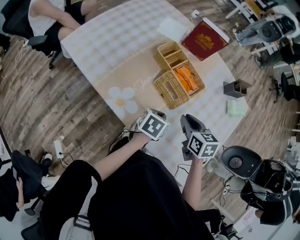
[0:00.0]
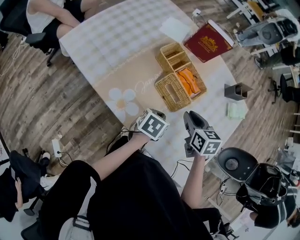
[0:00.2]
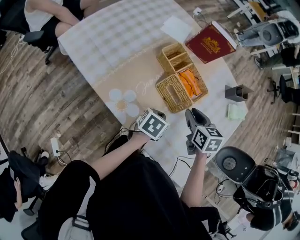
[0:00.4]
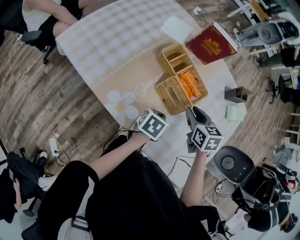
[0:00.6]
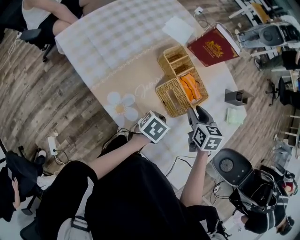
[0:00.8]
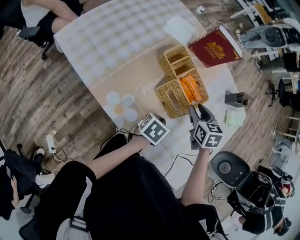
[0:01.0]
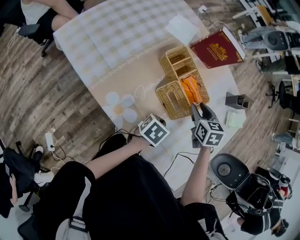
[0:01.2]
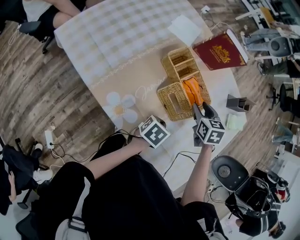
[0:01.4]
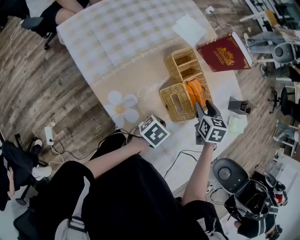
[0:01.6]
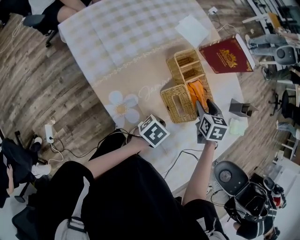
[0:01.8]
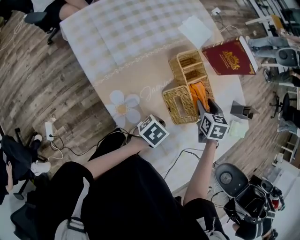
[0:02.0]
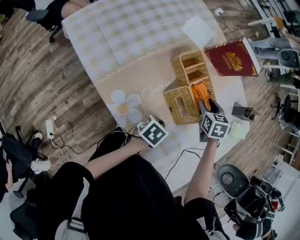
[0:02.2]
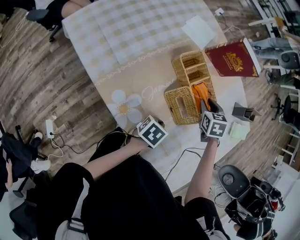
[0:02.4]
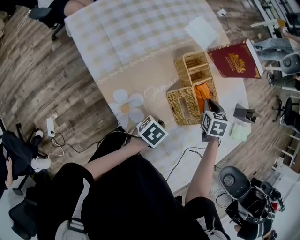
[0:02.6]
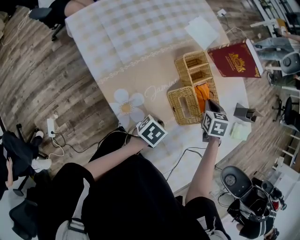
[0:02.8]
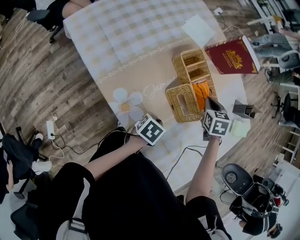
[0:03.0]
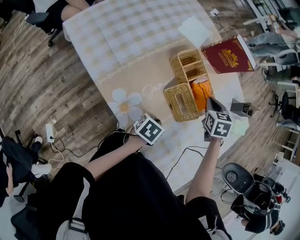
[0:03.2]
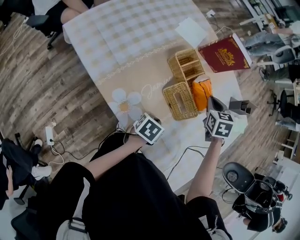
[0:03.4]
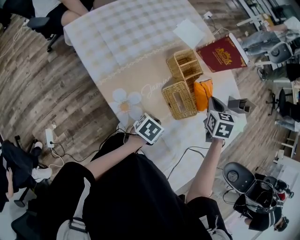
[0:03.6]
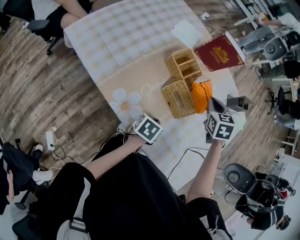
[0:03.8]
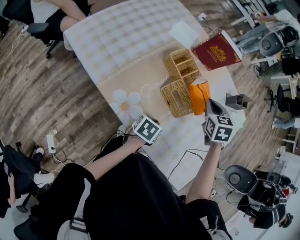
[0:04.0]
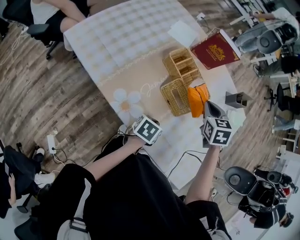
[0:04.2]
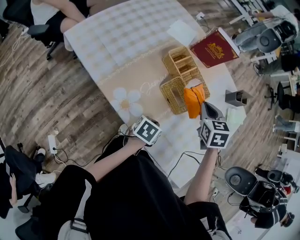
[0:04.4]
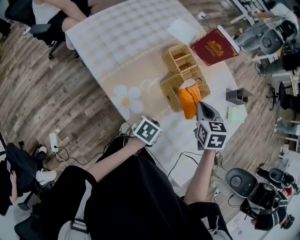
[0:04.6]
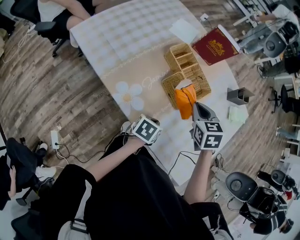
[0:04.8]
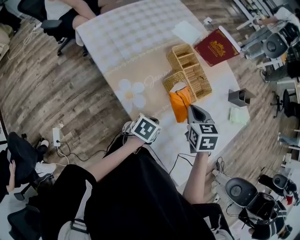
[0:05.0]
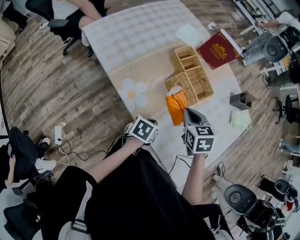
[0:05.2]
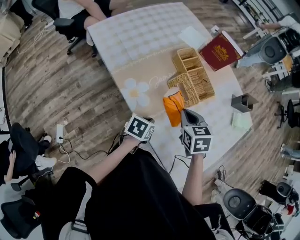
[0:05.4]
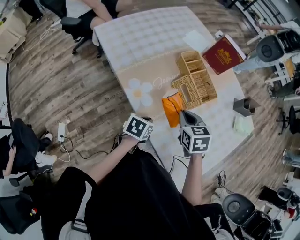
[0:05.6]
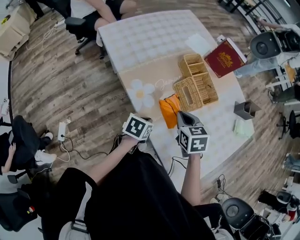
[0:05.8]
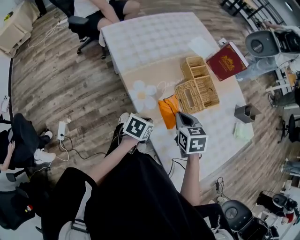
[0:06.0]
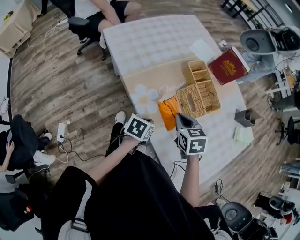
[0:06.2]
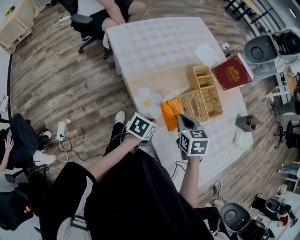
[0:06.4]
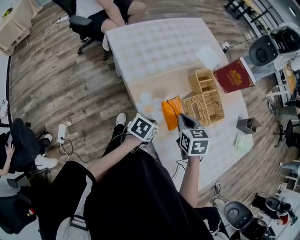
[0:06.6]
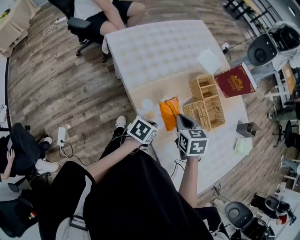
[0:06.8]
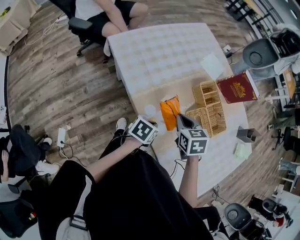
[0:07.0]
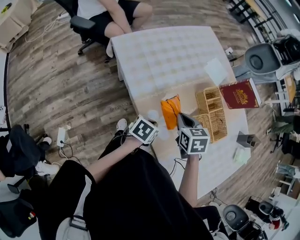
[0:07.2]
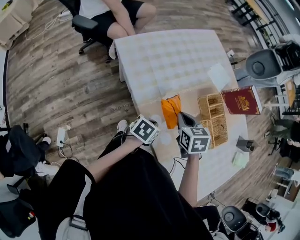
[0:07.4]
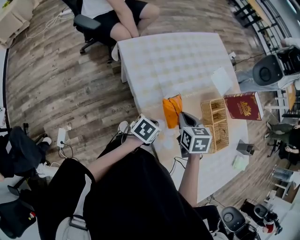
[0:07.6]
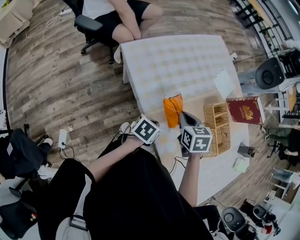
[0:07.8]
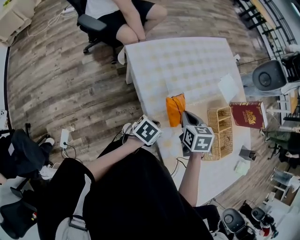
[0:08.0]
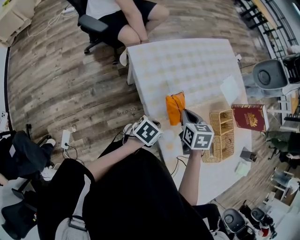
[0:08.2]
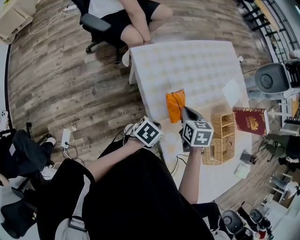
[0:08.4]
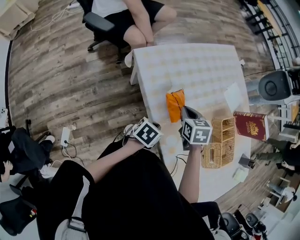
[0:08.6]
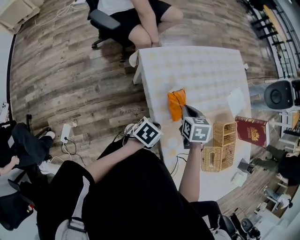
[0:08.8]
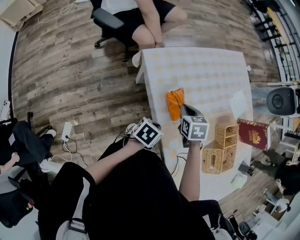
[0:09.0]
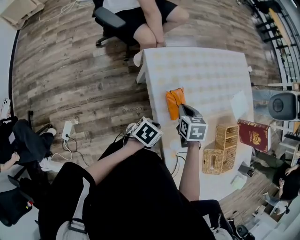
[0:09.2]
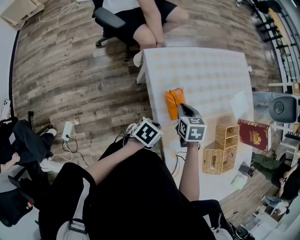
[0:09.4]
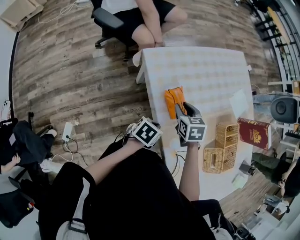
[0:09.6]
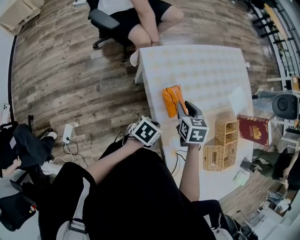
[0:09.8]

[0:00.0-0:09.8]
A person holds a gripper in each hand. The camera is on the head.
0:00.0 to 0:01.4: The right gripper travels forward by roughly 15 cm, and opens up; the left gripper moves some 5 cm.
0:01.4 to 0:02.8: The right gripper changes place by about 5 cm, and closes up.
0:02.8 to 0:04.2: The right gripper shifts roughly 15 cm upward and backward.
0:04.2 to 0:05.6: The right gripper shifts by about 15 cm, and rotates about 20 degrees. Meanwhile the left gripper ends up roughly 10 cm from where it was.
0:05.6 to 0:07.0: Both grippers travel together to the left and forward, roughly 15 cm.
0:07.0 to 0:08.4: The grippers both shift to the left and forward by roughly 20 cm.
0:08.4 to 0:09.8: The right gripper goes some 5 cm to the left, and opens up.

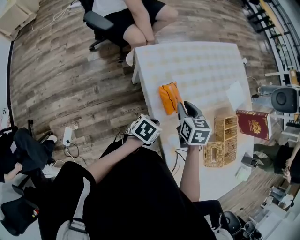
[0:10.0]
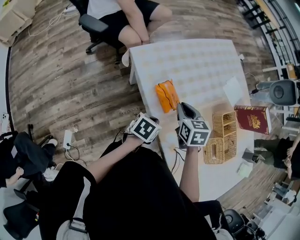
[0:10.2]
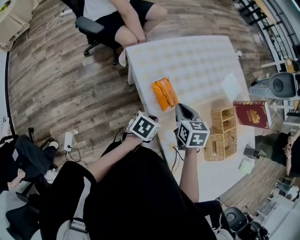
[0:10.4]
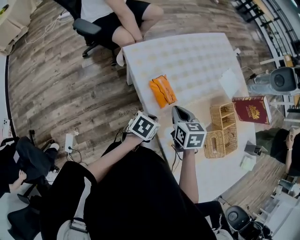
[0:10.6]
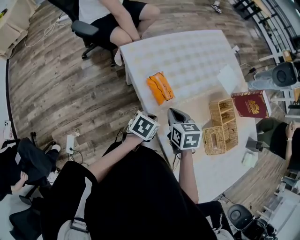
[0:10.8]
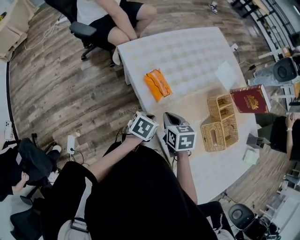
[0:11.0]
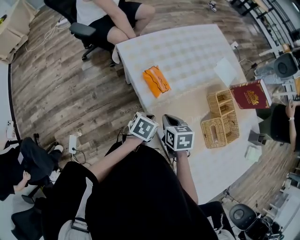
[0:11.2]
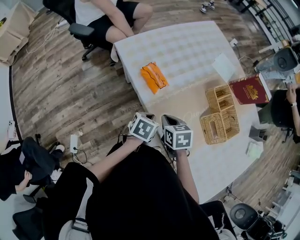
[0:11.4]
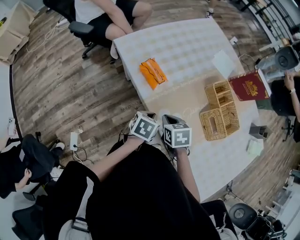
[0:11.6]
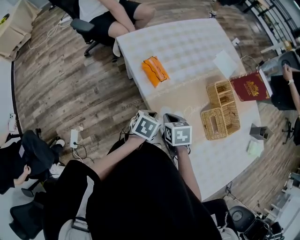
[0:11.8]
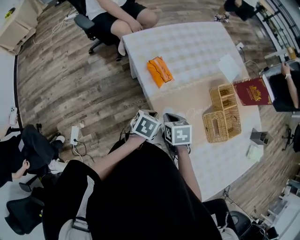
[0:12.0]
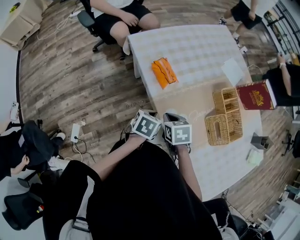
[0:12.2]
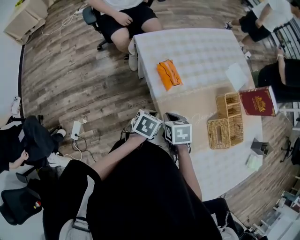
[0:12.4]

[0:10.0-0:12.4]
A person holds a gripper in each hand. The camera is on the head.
0:10.0 to 0:11.2: The right gripper is displaced backward and to the right by roughly 15 cm, and closes up. Meanwhile the left gripper goes about 5 cm to the right.
0:11.2 to 0:12.4: The grippers make only small movements.

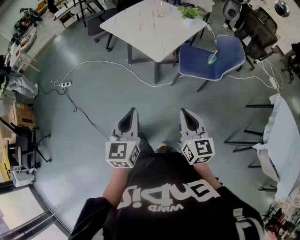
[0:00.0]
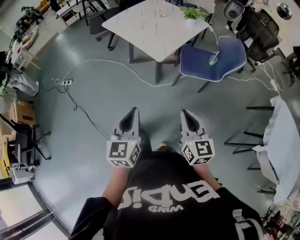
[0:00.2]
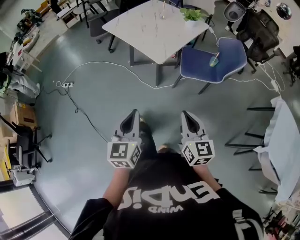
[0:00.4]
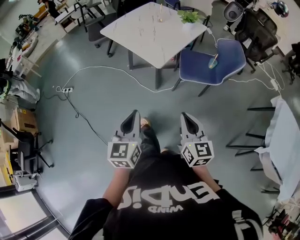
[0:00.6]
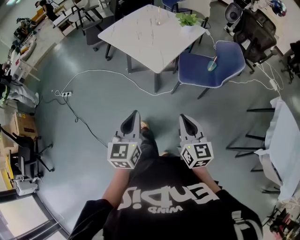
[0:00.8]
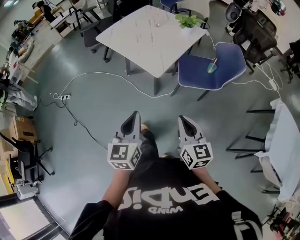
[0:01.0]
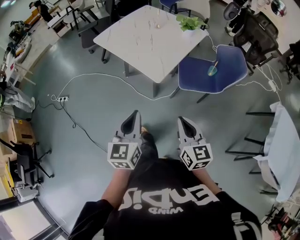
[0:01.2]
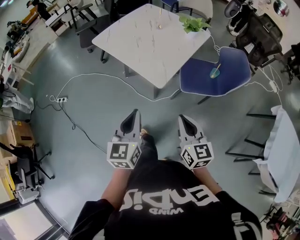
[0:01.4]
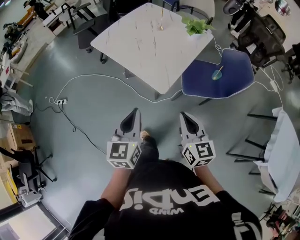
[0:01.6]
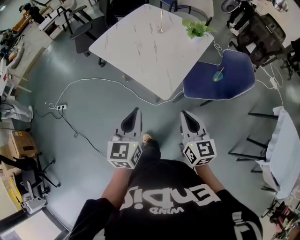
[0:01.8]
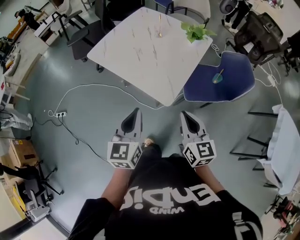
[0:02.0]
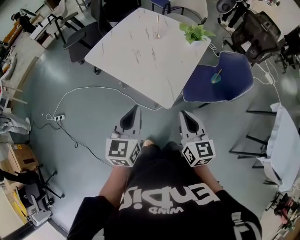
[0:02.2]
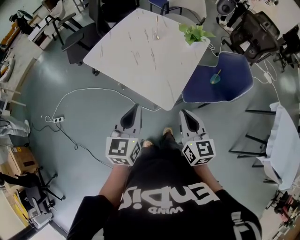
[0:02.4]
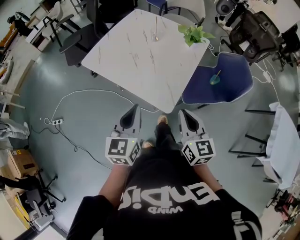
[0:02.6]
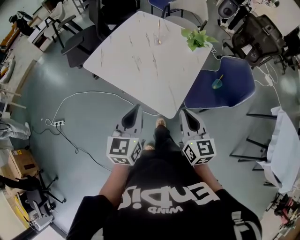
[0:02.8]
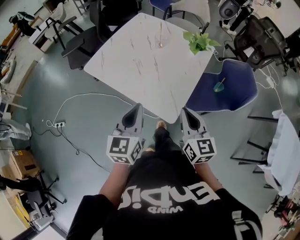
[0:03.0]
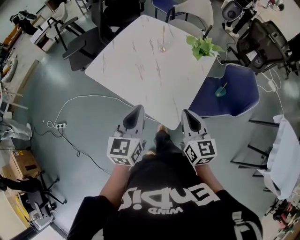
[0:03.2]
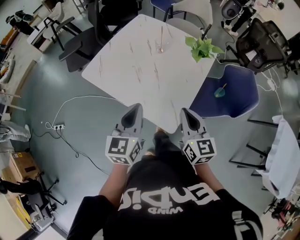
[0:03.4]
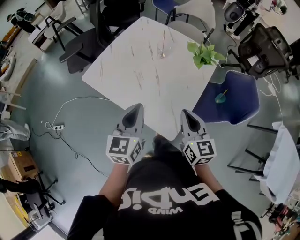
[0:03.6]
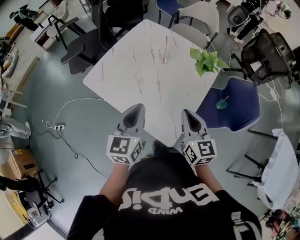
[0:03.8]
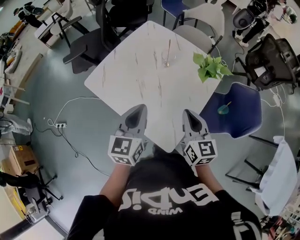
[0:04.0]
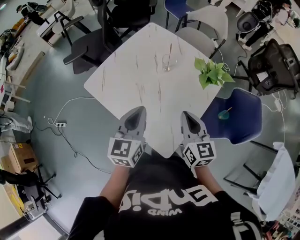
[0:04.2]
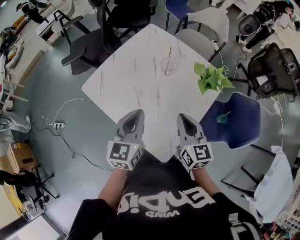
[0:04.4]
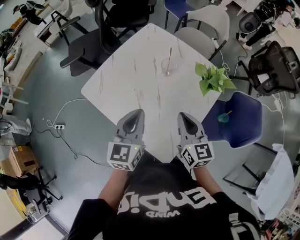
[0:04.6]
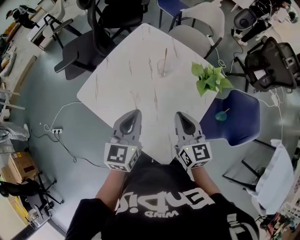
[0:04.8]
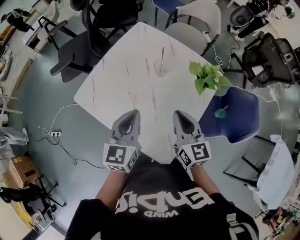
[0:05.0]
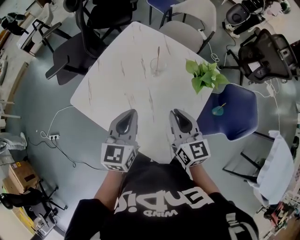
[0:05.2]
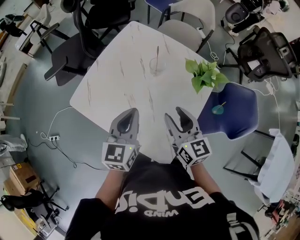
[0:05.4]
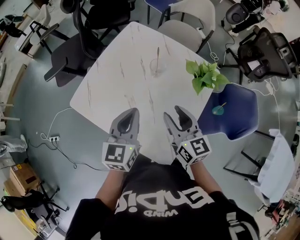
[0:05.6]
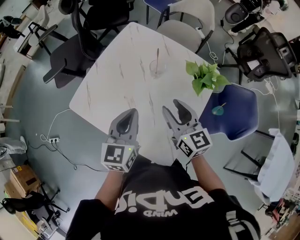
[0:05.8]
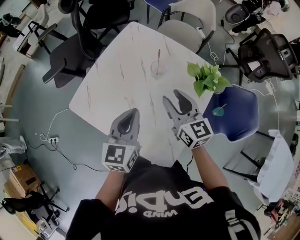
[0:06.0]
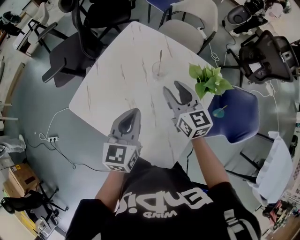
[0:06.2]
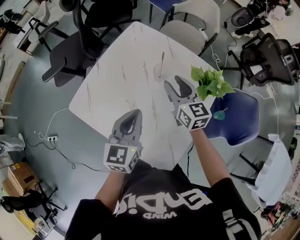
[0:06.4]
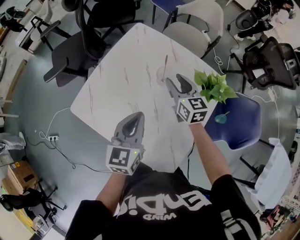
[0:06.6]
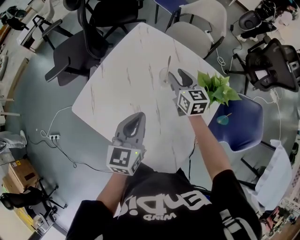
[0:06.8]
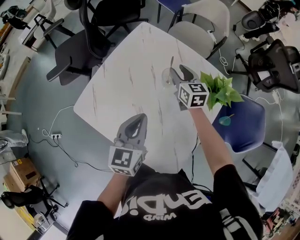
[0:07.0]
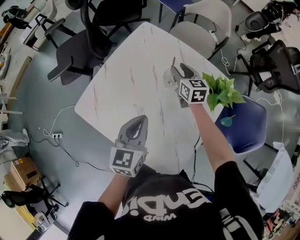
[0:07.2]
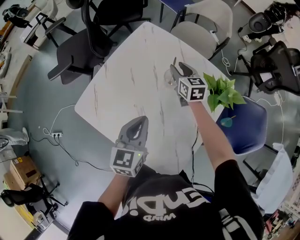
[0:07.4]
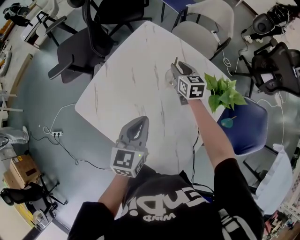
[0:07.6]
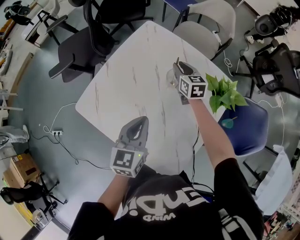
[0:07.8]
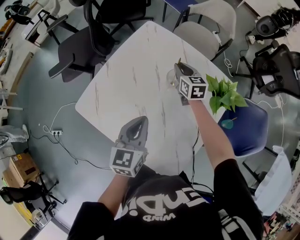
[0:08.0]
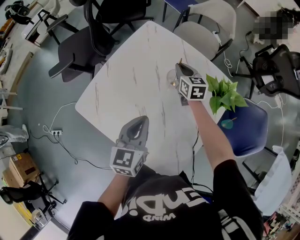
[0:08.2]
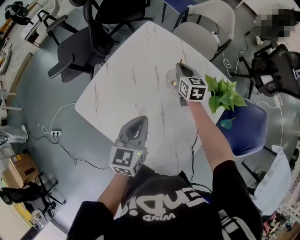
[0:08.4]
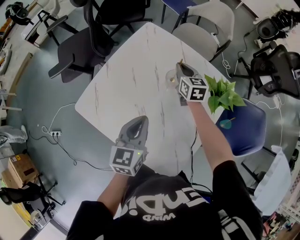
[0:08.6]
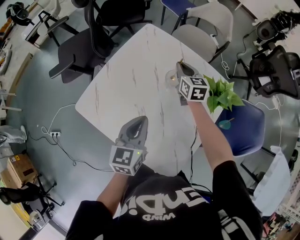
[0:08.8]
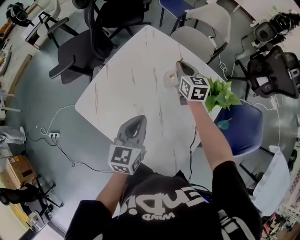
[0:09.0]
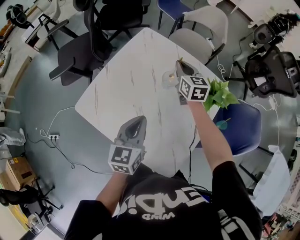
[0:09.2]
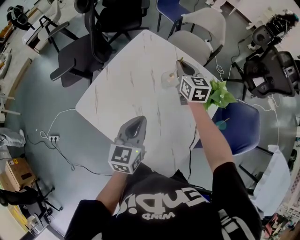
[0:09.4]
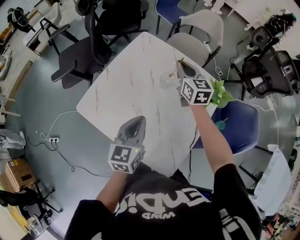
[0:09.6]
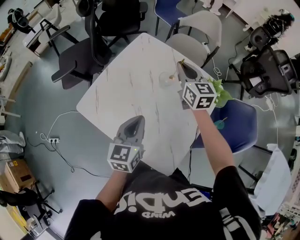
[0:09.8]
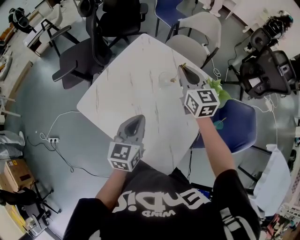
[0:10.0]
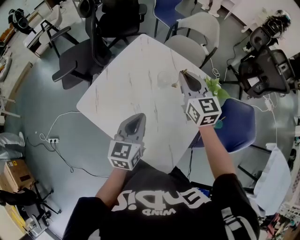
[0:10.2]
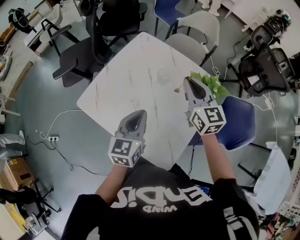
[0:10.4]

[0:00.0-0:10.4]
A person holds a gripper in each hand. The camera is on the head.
0:00.0 to 0:01.4: Both grippers move forward, some 20 cm.
0:01.4 to 0:03.0: The grippers both shift forward by approximately 25 cm.
0:03.0 to 0:04.4: The grippers both shift forward by approximately 20 cm.
0:04.4 to 0:06.0: The left gripper travels forward by approximately 10 cm. Meanwhile the right gripper is displaced forward by some 15 cm, and opens its fingers.
0:06.0 to 0:07.4: The left gripper changes place by approximately 5 cm. Meanwhile the right gripper moves forward and downward, some 25 cm.
0:07.4 to 0:09.0: The right gripper closes.
0:09.0 to 0:10.4: The right gripper goes approximately 25 cm backward and upward; the left gripper changes place by some 5 cm.

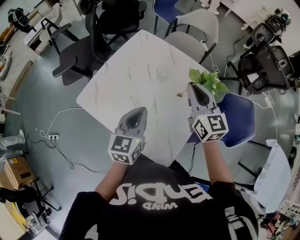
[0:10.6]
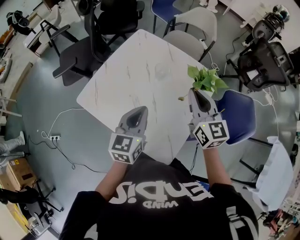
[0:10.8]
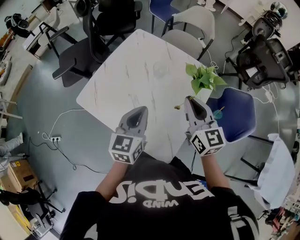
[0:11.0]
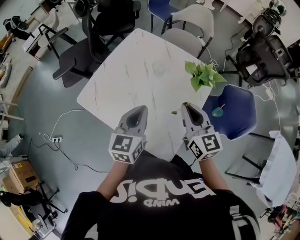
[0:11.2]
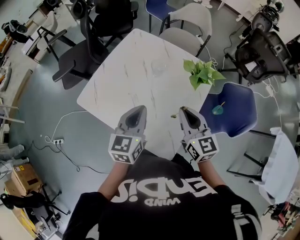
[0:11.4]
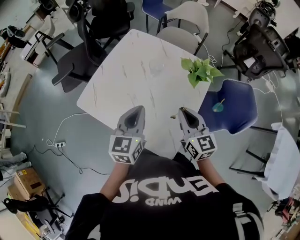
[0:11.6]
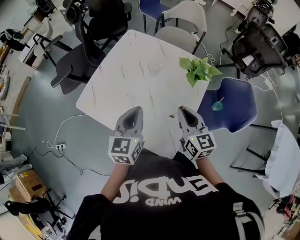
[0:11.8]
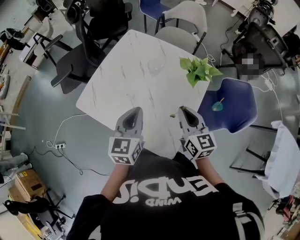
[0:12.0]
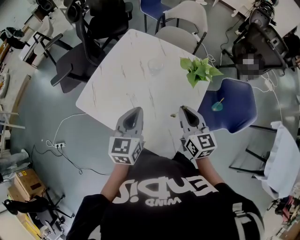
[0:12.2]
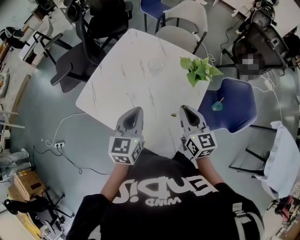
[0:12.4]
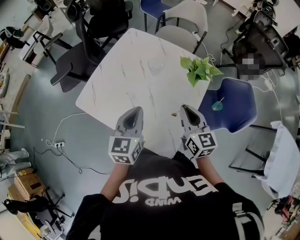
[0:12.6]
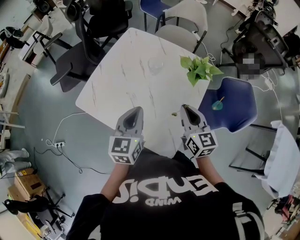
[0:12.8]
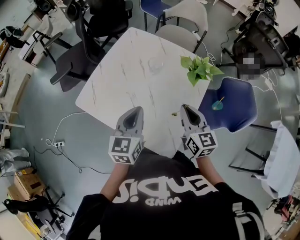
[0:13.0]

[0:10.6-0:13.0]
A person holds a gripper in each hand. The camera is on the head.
0:10.6 to 0:11.8: The right gripper travels backward and downward by some 15 cm.
0:11.8 to 0:13.0: The two grippers keep their place.
